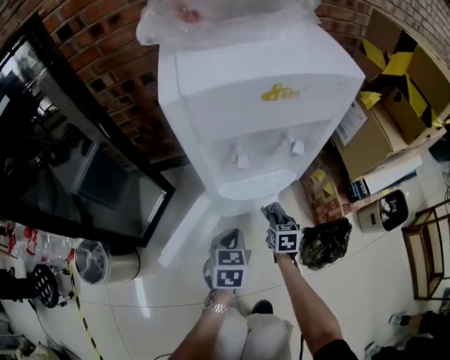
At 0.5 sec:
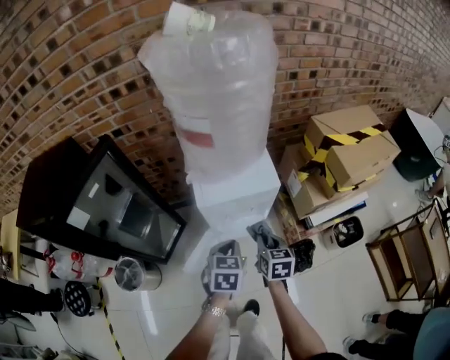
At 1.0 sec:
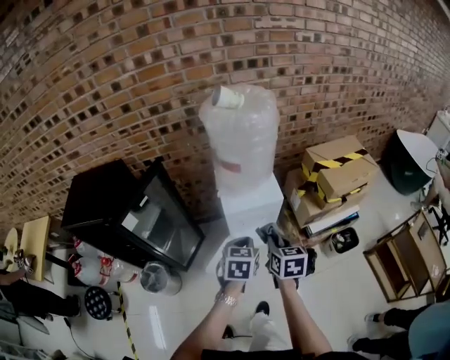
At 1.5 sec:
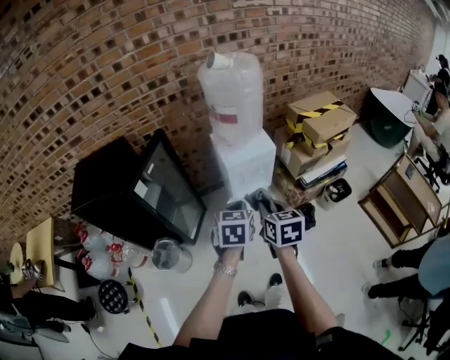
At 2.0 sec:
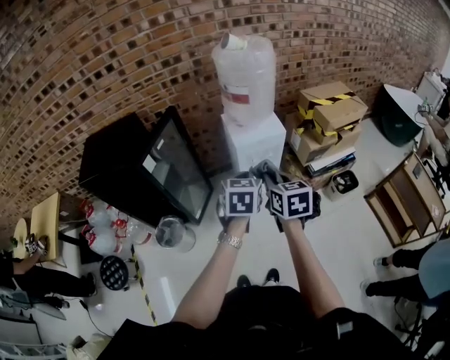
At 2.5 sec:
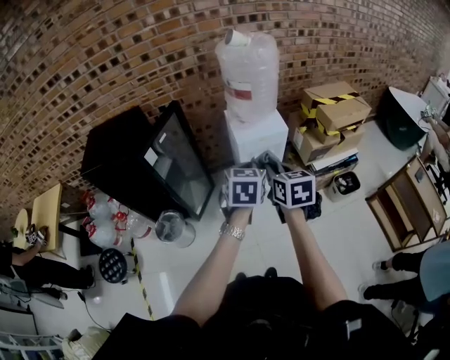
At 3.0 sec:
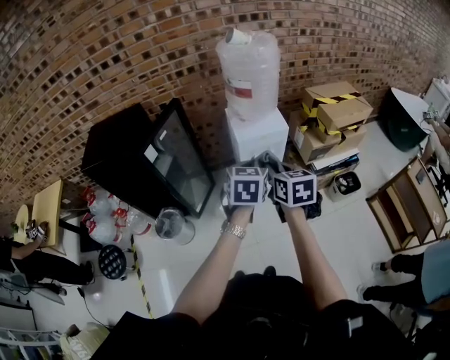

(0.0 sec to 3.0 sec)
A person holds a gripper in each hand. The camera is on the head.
0.0 sec - 1.5 sec: The grippers both shift upward by approximately 70 cm.
1.5 sec - 3.0 sec: The grippers move only a little.

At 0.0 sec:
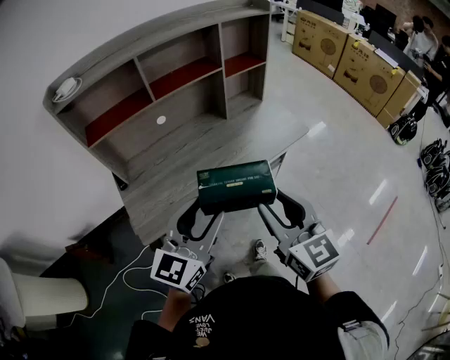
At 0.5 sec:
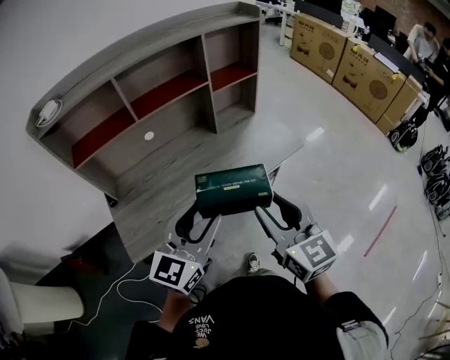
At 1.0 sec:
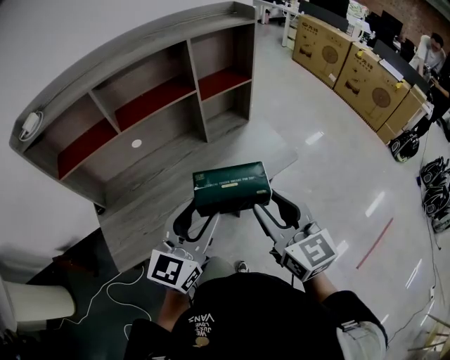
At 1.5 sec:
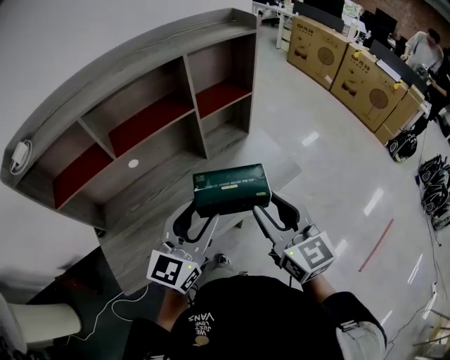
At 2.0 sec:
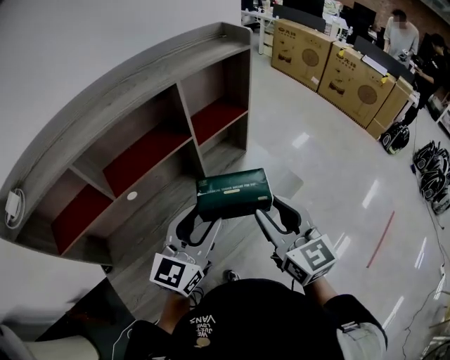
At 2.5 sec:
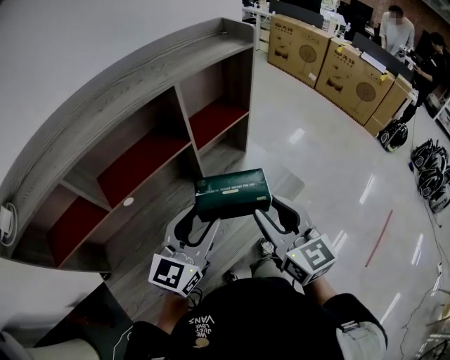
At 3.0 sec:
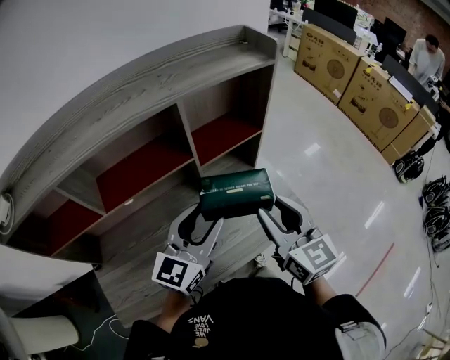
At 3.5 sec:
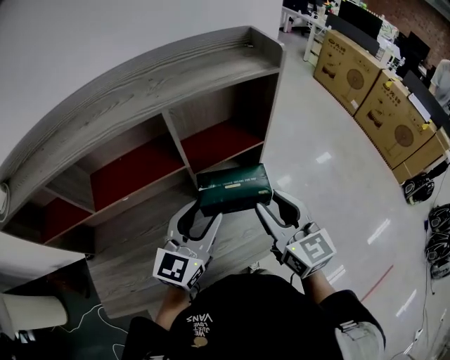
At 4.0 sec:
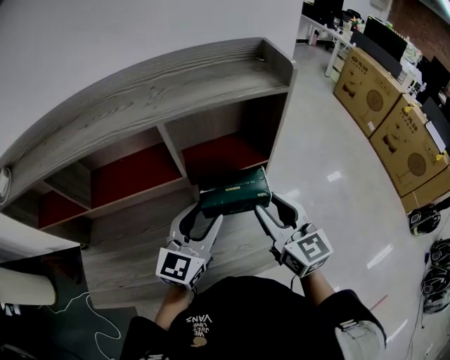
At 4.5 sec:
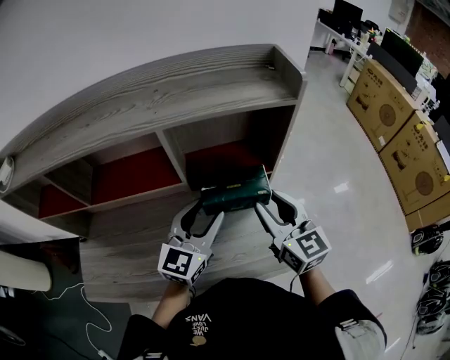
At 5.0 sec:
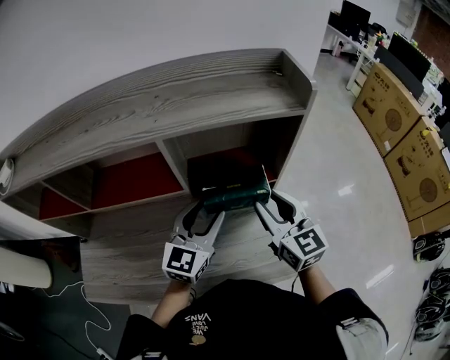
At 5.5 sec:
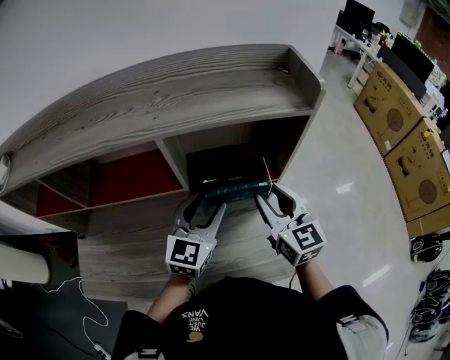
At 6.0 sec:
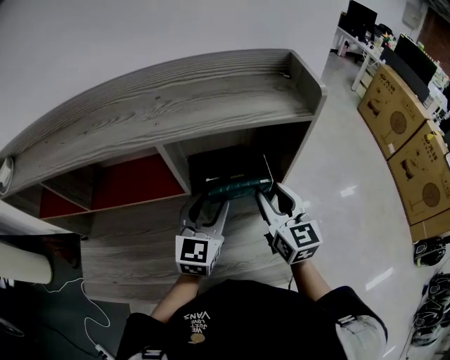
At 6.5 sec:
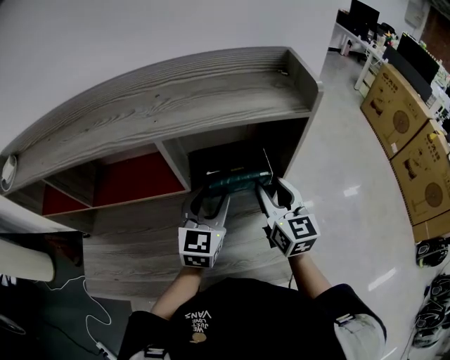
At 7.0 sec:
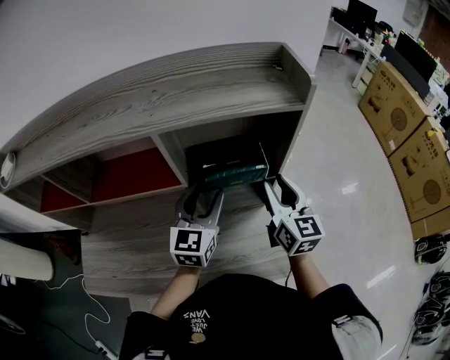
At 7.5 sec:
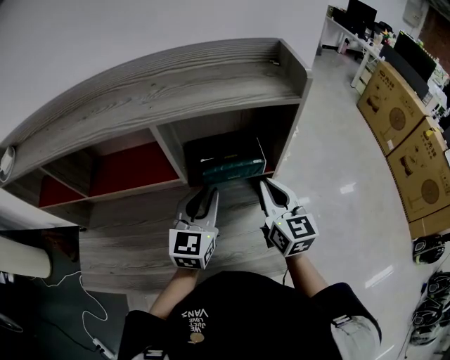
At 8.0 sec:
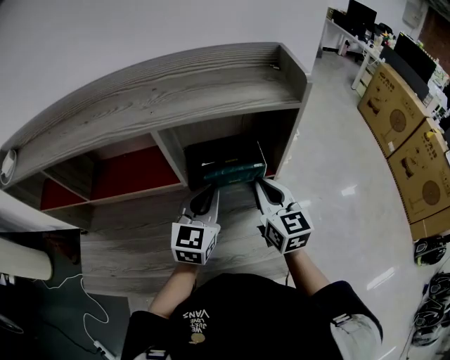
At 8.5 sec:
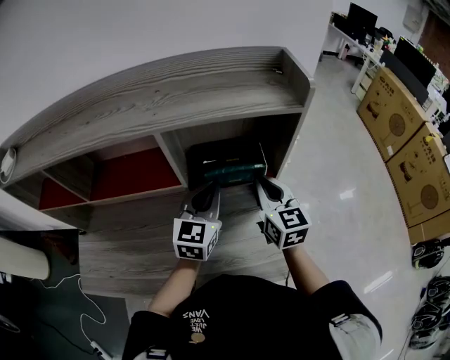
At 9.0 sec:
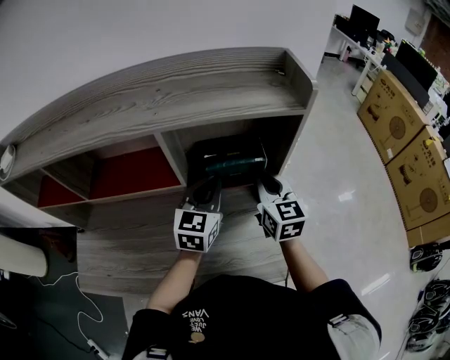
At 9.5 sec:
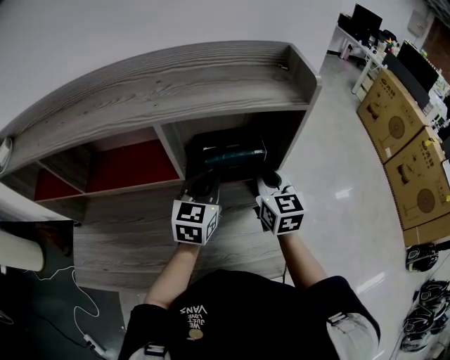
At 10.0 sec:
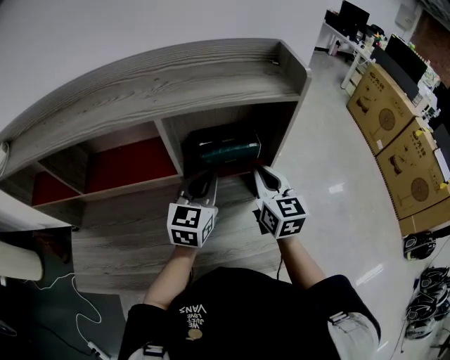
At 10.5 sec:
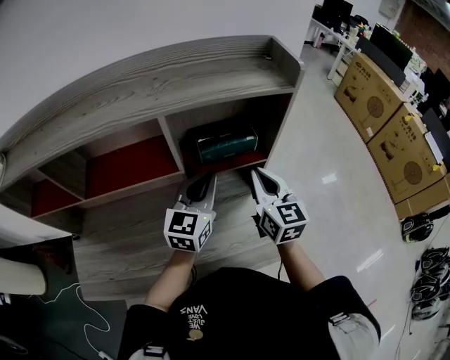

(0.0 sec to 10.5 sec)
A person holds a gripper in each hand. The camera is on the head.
0.0 sec - 2.0 sec: Both grippers travel together forward, some 30 cm.
2.0 sec - 4.0 sec: The two grippers go some 20 cm forward. The left gripper rotates about 20 degrees. The right gripper turns by about 20 degrees.
4.0 sec - 6.5 sec: Both grippers move forward, approximately 10 cm. The left gripper rotates approximately 20 degrees.
6.5 sec - 8.5 sec: The left gripper closes its fingers, while the right gripper closes its fingers.
8.5 sec - 10.5 sec: The grippers make only small movements.

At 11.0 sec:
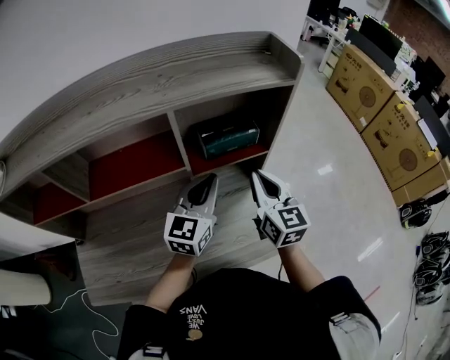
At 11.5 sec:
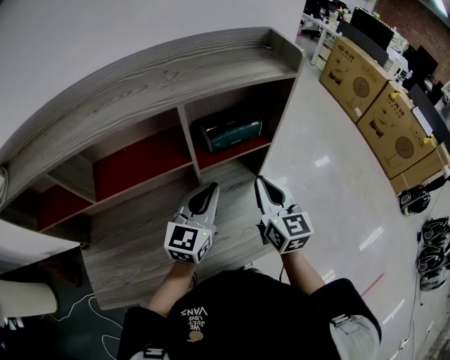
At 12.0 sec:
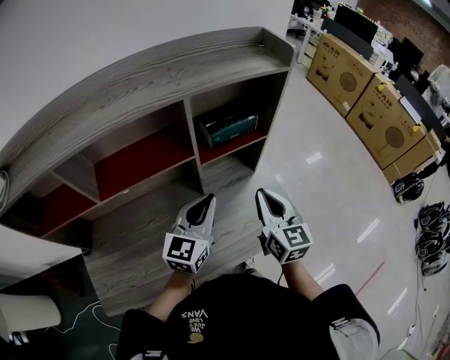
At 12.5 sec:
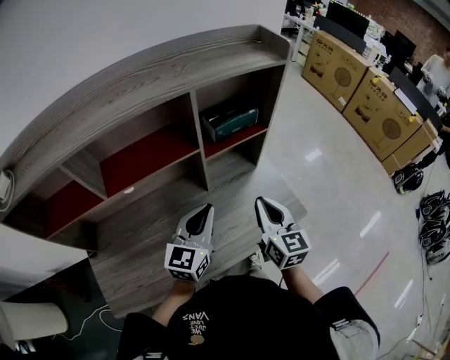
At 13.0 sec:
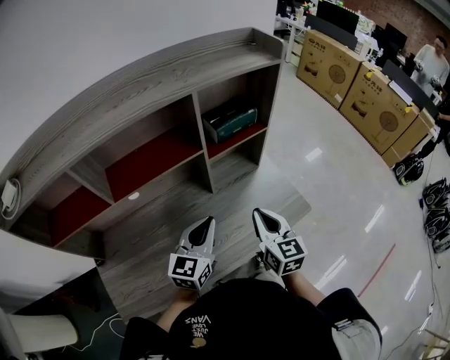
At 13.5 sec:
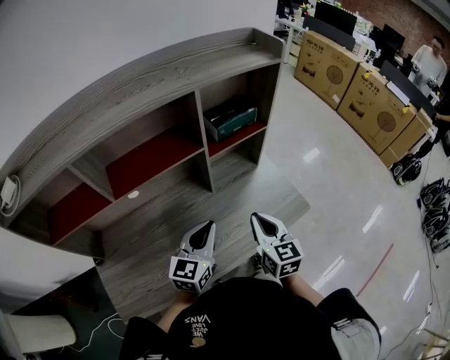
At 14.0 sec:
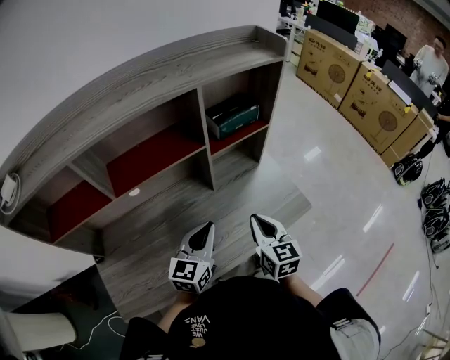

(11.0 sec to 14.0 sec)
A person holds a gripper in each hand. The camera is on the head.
11.0 sec - 12.5 sec: Both grippers travel together backward, roughly 15 cm.
12.5 sec - 14.0 sec: The grippers both shift backward and downward by about 10 cm.

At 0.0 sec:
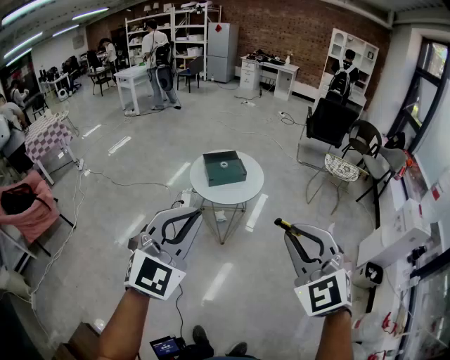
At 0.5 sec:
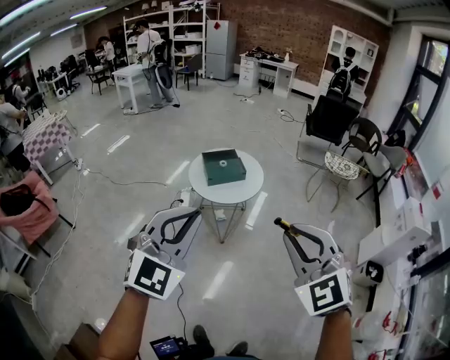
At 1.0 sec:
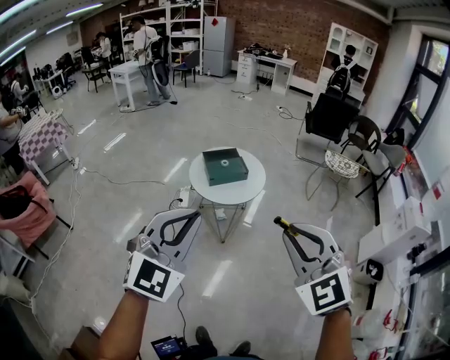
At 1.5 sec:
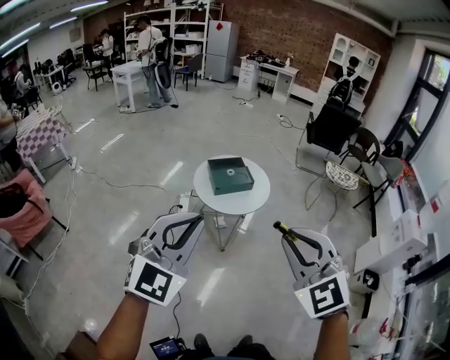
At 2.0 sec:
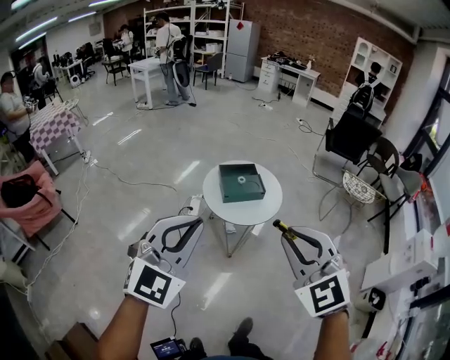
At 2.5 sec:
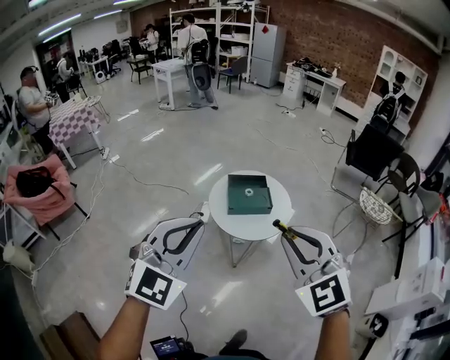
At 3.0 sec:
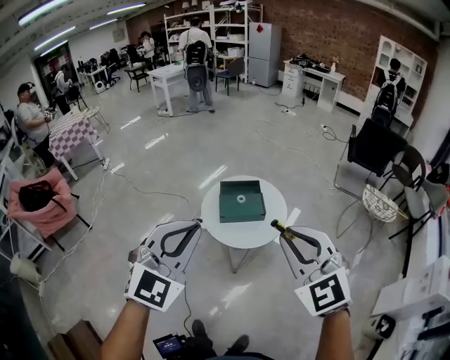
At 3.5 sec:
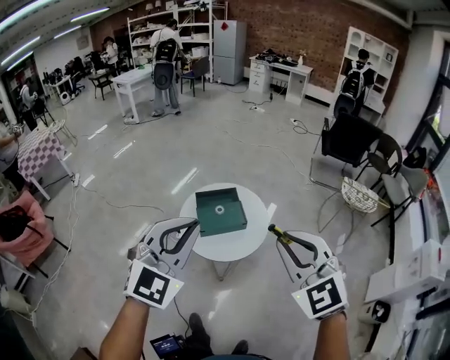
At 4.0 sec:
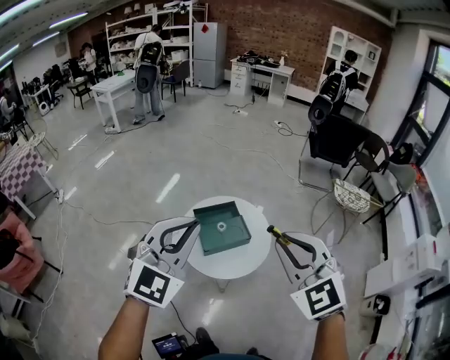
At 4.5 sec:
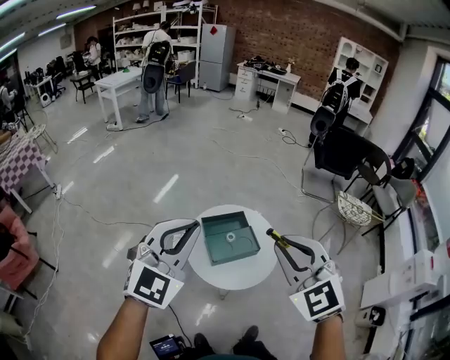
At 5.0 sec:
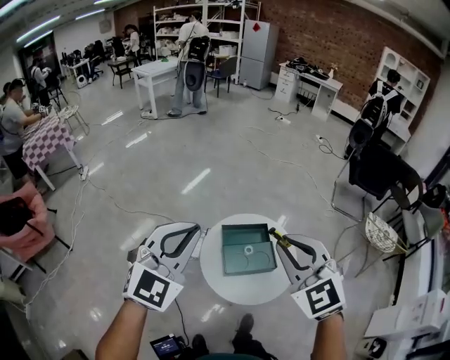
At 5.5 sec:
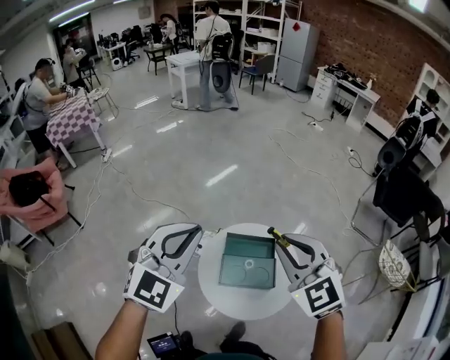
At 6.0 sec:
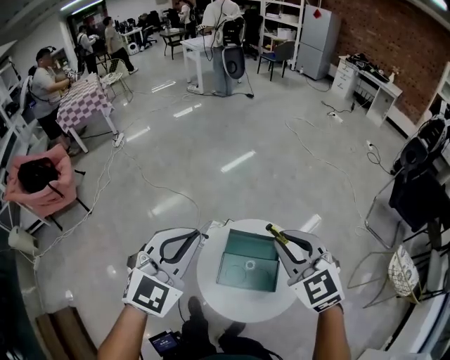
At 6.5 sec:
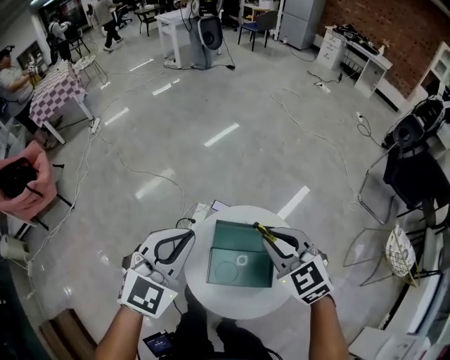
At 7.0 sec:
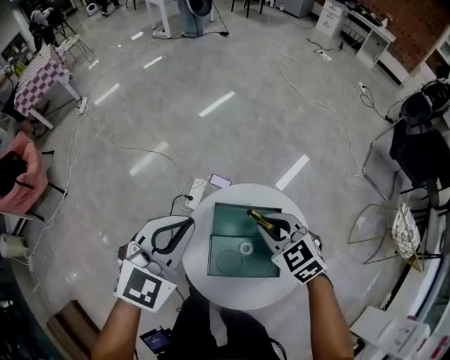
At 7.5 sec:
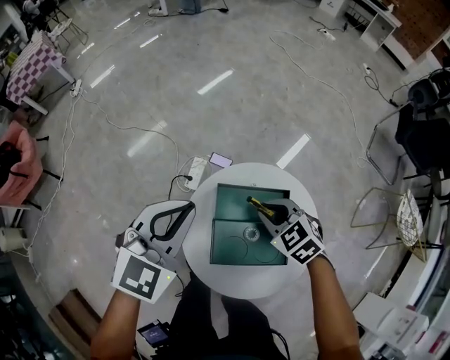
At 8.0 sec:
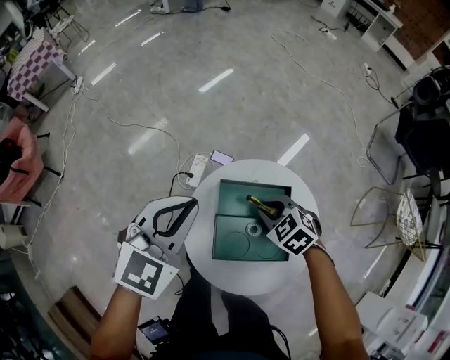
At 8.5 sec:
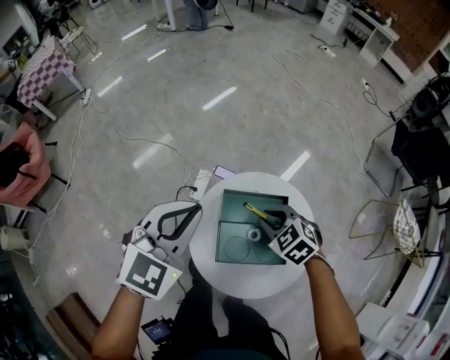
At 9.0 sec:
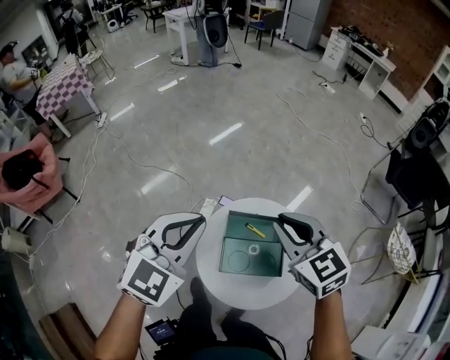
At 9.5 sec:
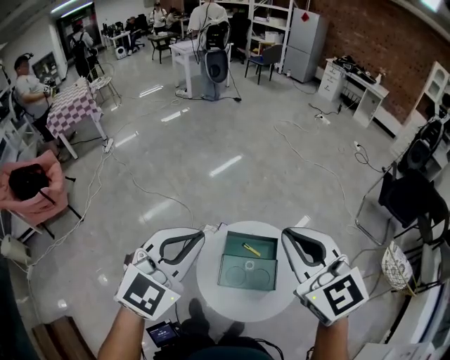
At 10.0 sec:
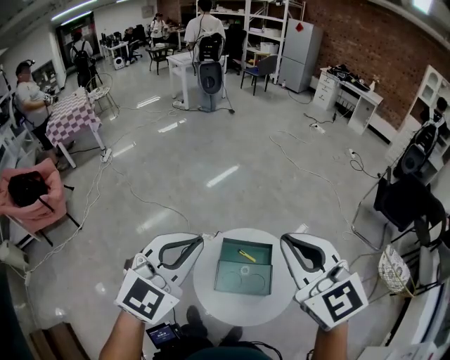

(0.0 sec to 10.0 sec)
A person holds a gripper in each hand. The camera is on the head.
0.0 sec - 2.0 sec: The two grippers go about 25 cm forward and to the left.
2.0 sec - 4.0 sec: The two grippers travel together, forward, roughly 50 cm.
4.0 sec - 6.0 sec: The two grippers travel together, some 50 cm. The left gripper turns by some 30 degrees; the right gripper swivels about 30 degrees.
6.0 sec - 8.0 sec: The right gripper is displaced downward by about 50 cm, and angles its fingers downward, by approximately 30 degrees, while the left gripper moves downward and forward, approximately 40 cm.
8.0 sec - 10.0 sec: The right gripper goes some 60 cm upward, and points its fingers about 50 degrees further upward. Meanwhile the left gripper heads upward and backward, covering approximately 50 cm.
